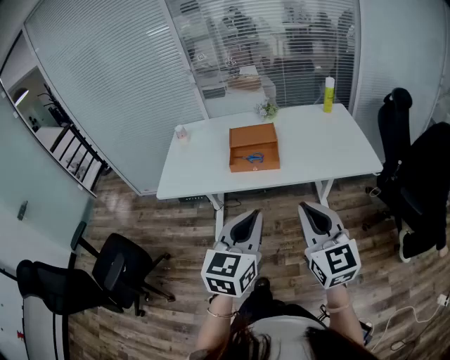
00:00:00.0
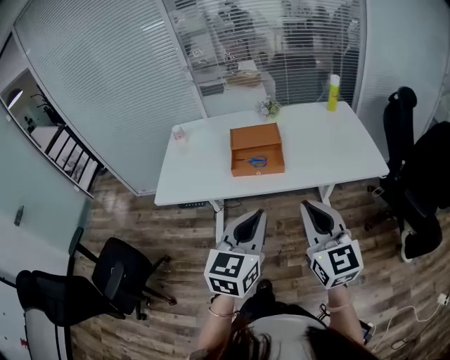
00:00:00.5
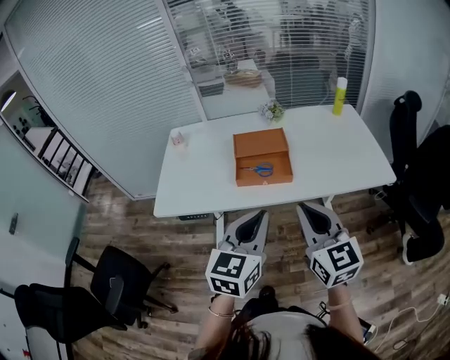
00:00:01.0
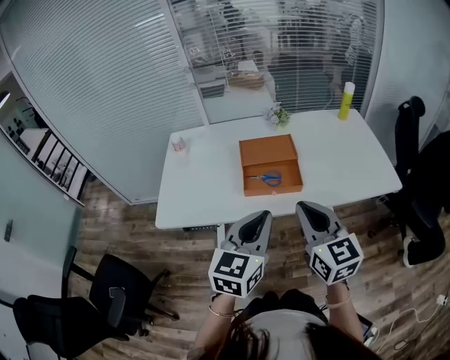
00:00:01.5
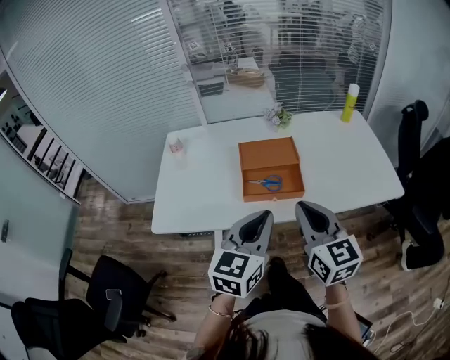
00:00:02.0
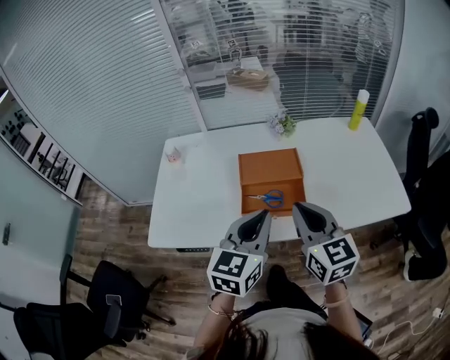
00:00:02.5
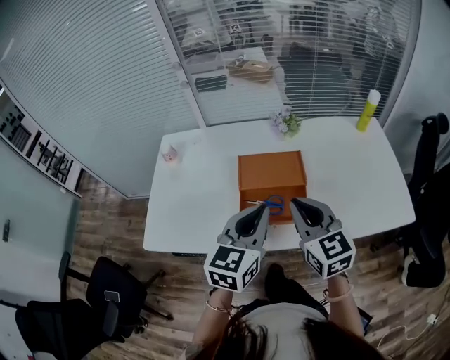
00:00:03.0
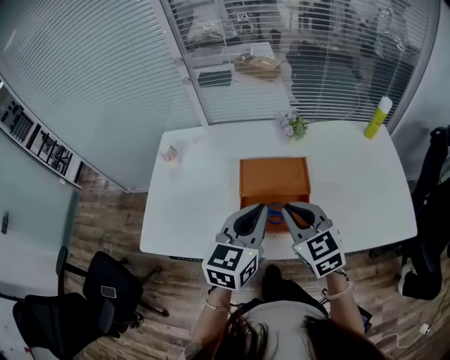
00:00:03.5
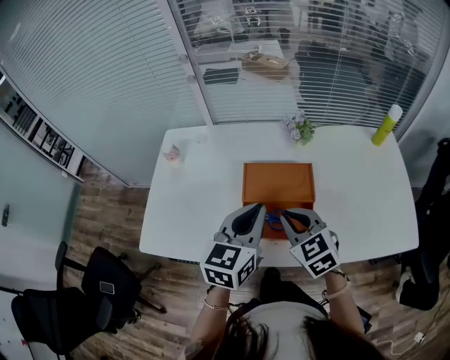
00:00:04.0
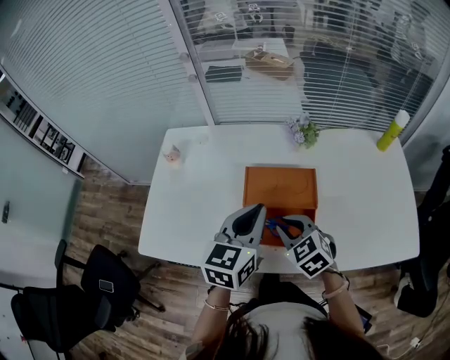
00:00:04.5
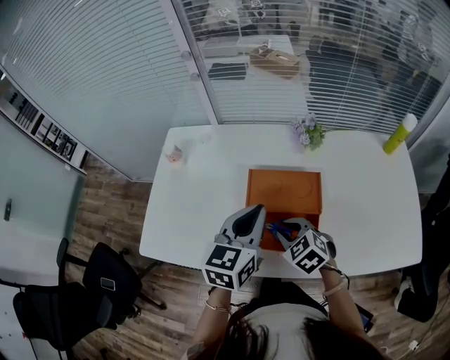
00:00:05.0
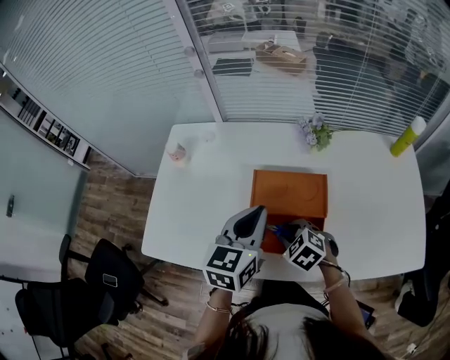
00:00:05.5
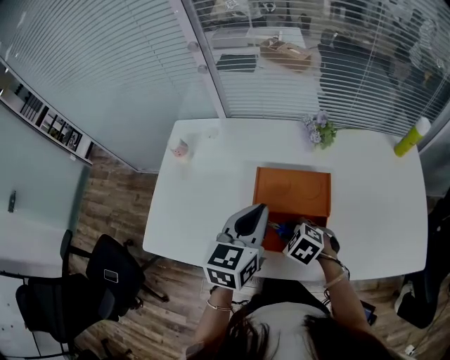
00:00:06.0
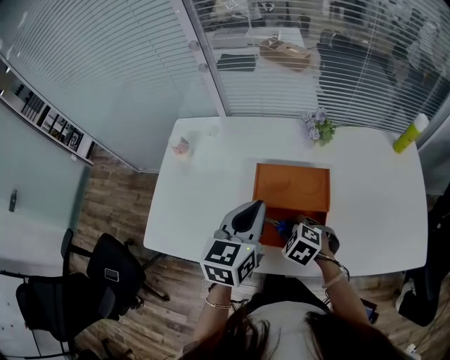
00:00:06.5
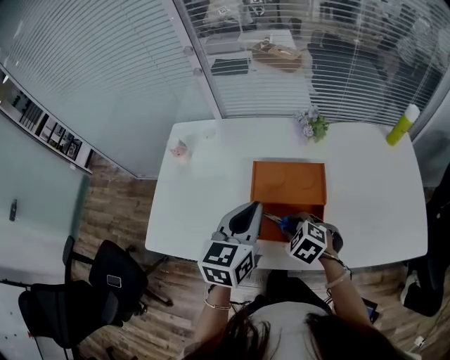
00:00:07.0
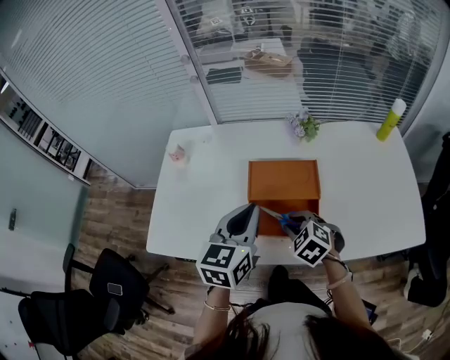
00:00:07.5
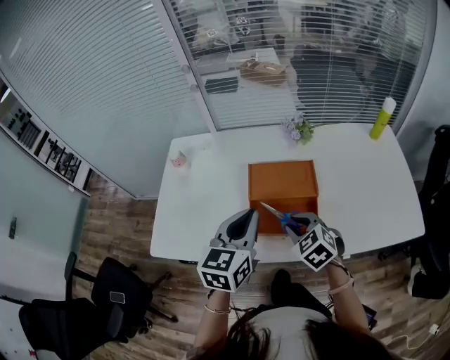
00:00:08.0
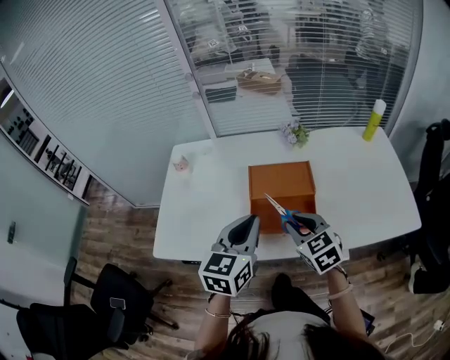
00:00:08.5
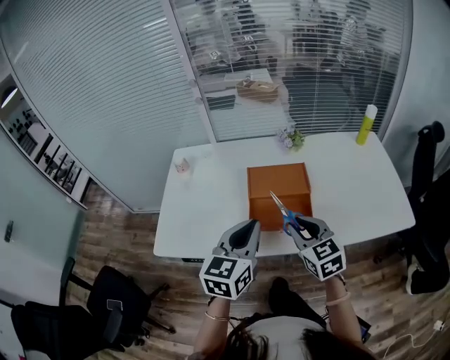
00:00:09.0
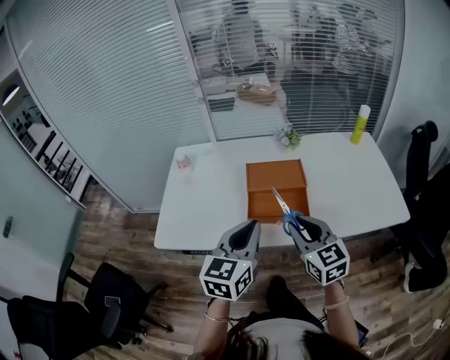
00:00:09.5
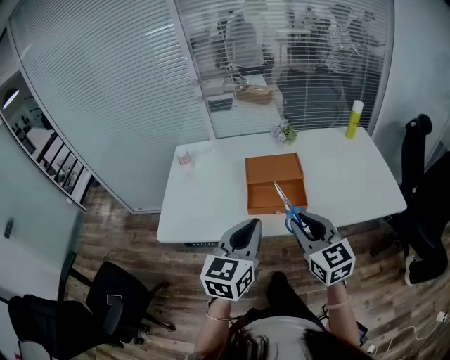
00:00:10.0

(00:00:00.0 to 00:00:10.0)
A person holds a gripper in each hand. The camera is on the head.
00:00:00.0 - 00:00:02.0: The right gripper goes some 25 cm forward and to the left, while the left gripper shifts approximately 20 cm forward.
00:00:02.0 - 00:00:04.0: The right gripper shifts some 25 cm forward and downward, and turns by approximately 40 degrees; the left gripper moves forward, roughly 20 cm.
00:00:04.0 - 00:00:06.0: The right gripper goes roughly 15 cm downward, points its fingers roughly 30 degrees further downward, and opens up. Meanwhile the left gripper is displaced forward by about 5 cm.
00:00:06.0 - 00:00:08.0: The right gripper shifts some 10 cm upward, and changes its angle by some 30 degrees. Meanwhile the left gripper moves backward, about 10 cm.
00:00:08.0 - 00:00:10.0: The right gripper shifts roughly 20 cm backward and upward, and angles its fingers upward, by approximately 40 degrees. Meanwhile the left gripper heads backward, covering about 15 cm.

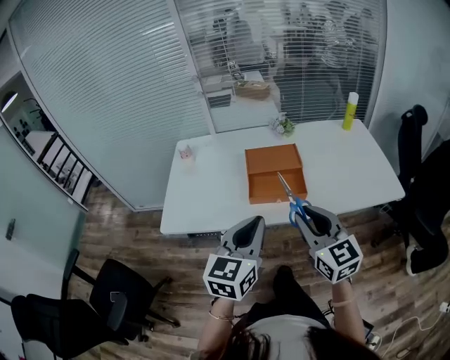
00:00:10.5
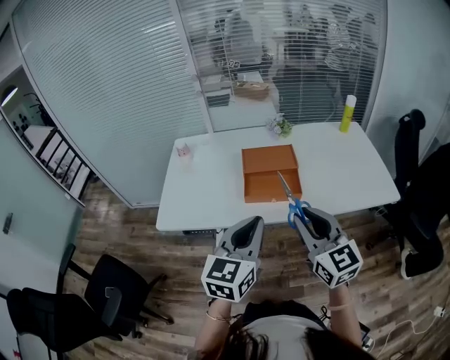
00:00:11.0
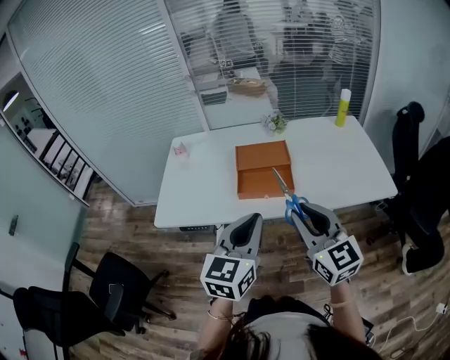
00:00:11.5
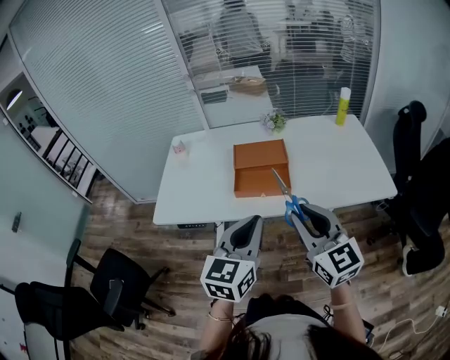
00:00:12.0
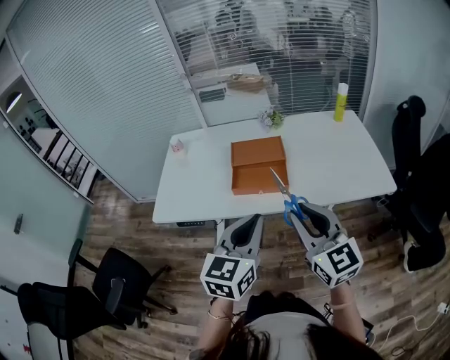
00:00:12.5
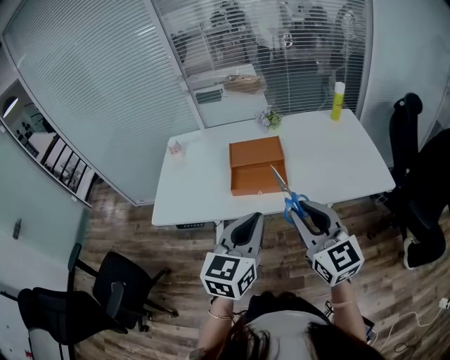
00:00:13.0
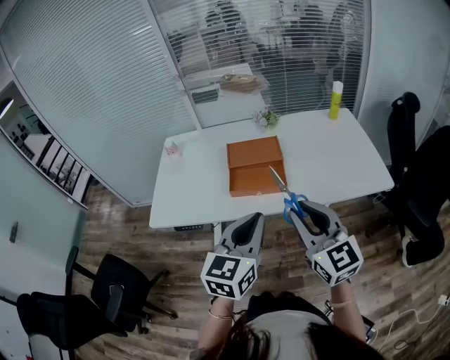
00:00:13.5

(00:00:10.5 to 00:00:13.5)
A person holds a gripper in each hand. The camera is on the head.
00:00:10.5 - 00:00:12.0: Both grippers move to the right, approximately 5 cm.
00:00:12.0 - 00:00:13.5: The grippers move only a little.

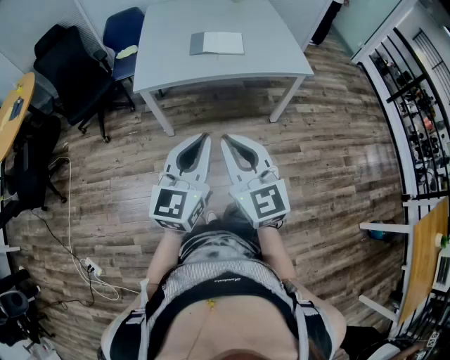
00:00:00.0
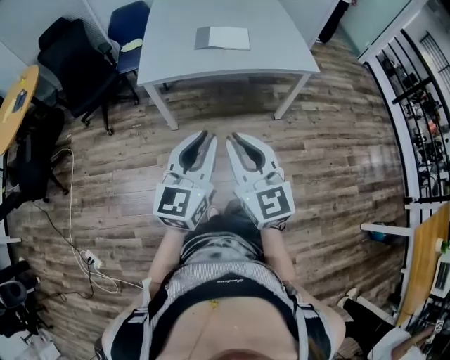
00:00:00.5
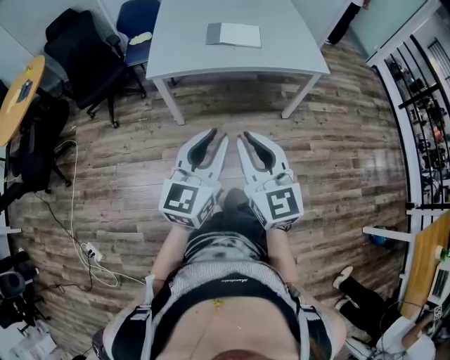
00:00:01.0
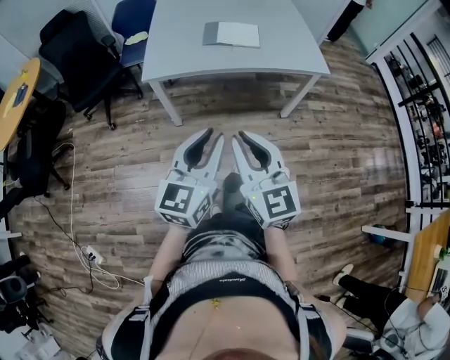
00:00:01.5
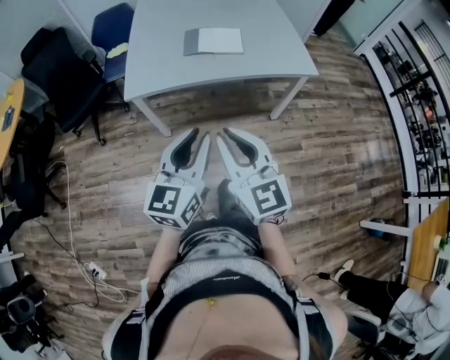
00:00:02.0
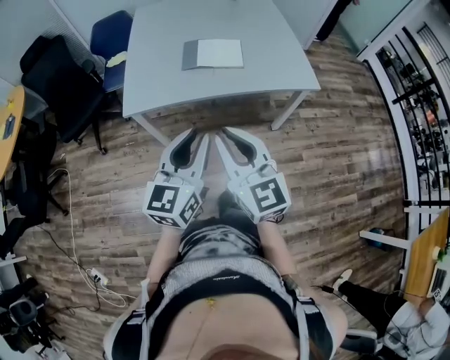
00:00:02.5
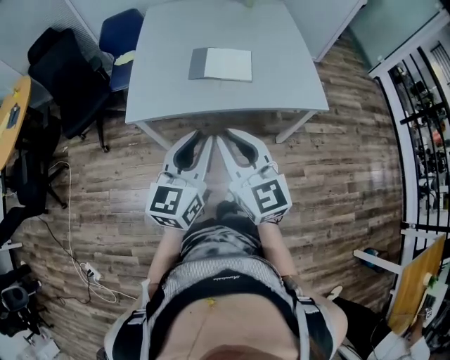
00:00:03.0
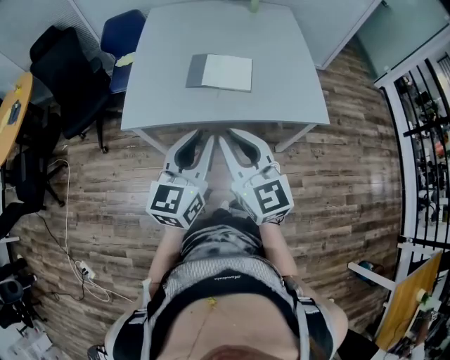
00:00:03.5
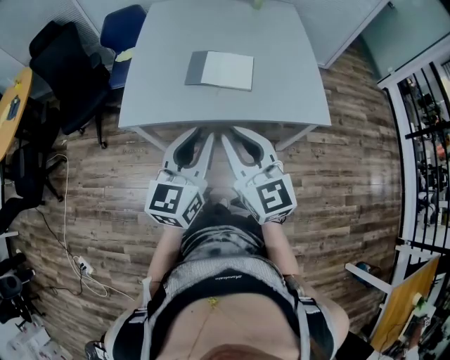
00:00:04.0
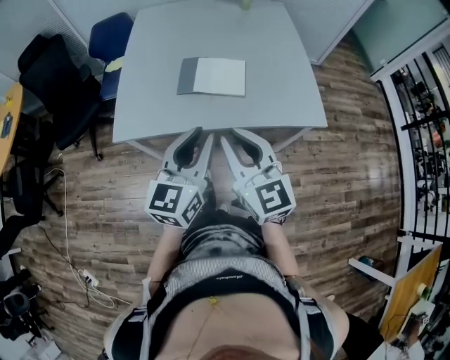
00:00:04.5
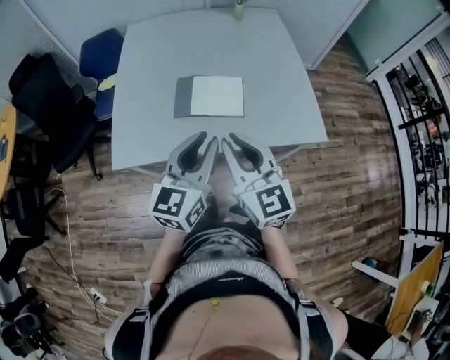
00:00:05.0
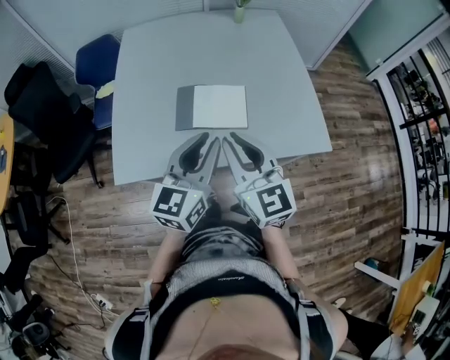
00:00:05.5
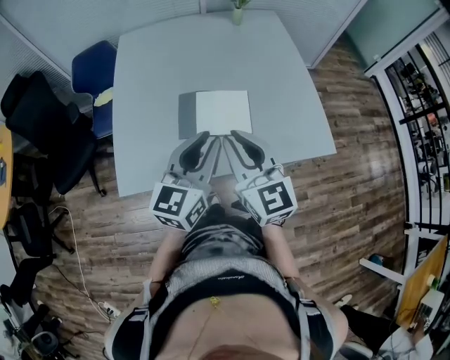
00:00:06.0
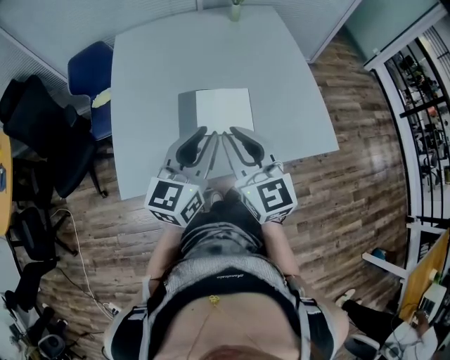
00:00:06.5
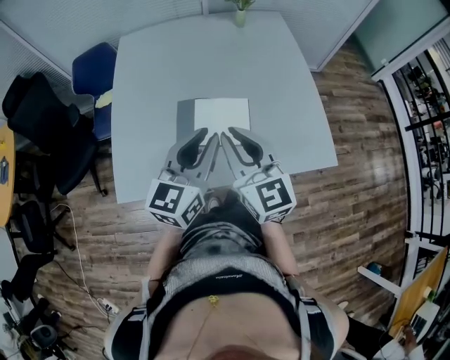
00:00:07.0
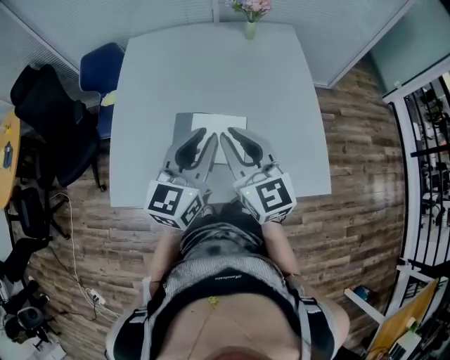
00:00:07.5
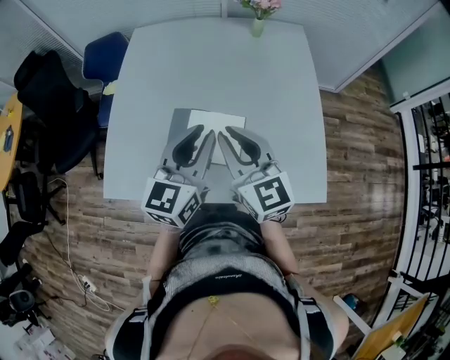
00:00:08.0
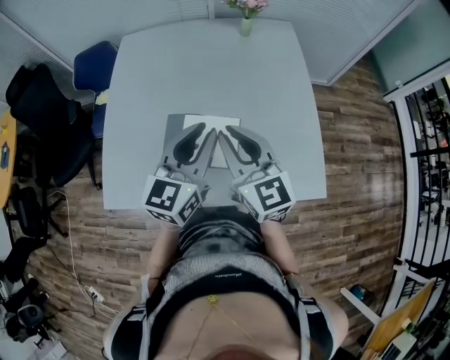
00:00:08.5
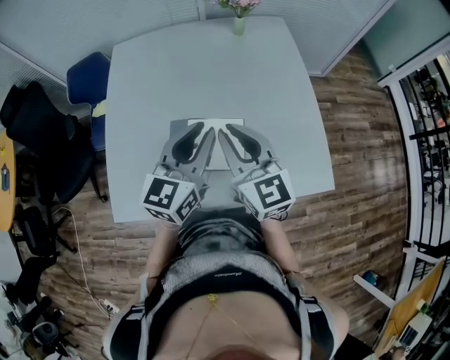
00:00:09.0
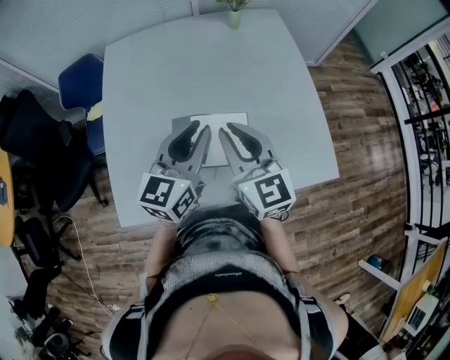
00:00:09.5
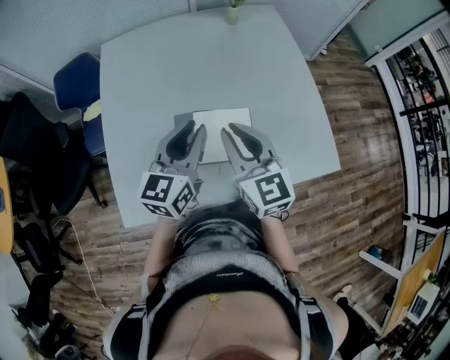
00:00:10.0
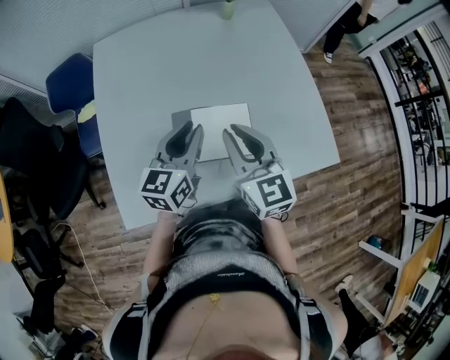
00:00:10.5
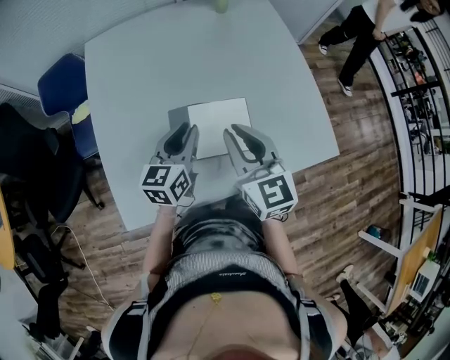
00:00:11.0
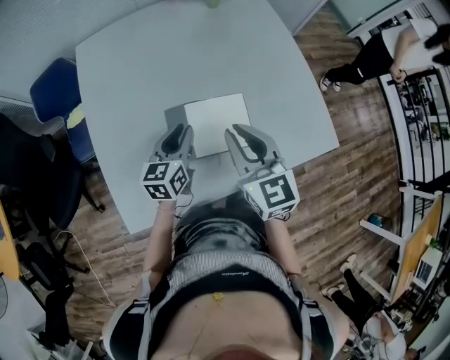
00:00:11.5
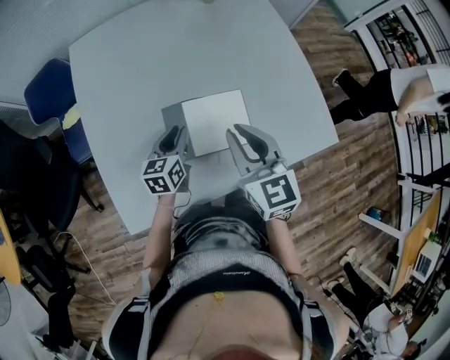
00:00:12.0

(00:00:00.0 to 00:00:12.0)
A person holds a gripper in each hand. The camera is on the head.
00:00:00.0 - 00:00:02.0: The two grippers go some 10 cm forward.
00:00:02.0 - 00:00:04.0: The right gripper is displaced forward and to the right by about 25 cm, while the left gripper moves forward, about 20 cm.
00:00:04.0 - 00:00:06.0: The two grippers go approximately 20 cm forward.
00:00:06.0 - 00:00:08.0: Both grippers travel together forward and to the right, approximately 15 cm.
00:00:08.0 - 00:00:10.0: Both grippers move to the left, roughly 10 cm.
00:00:10.0 - 00:00:12.0: The left gripper shifts about 20 cm downward, and turns by some 20 degrees.

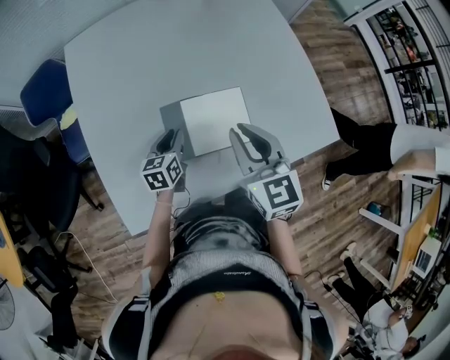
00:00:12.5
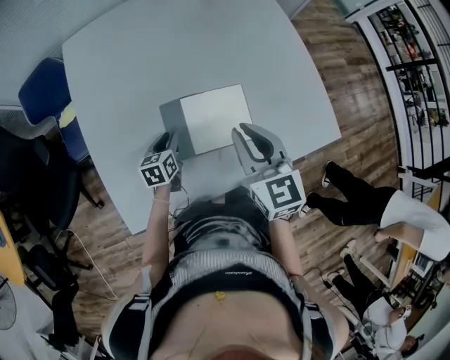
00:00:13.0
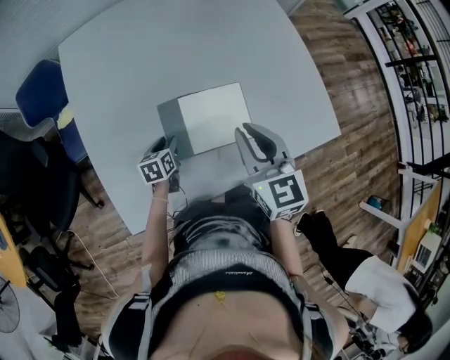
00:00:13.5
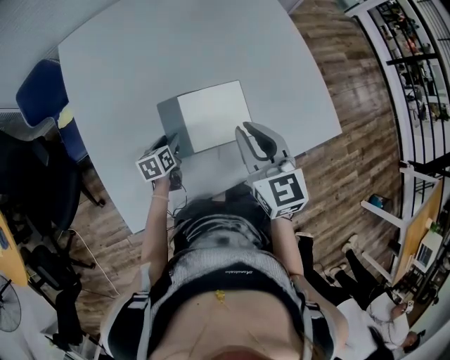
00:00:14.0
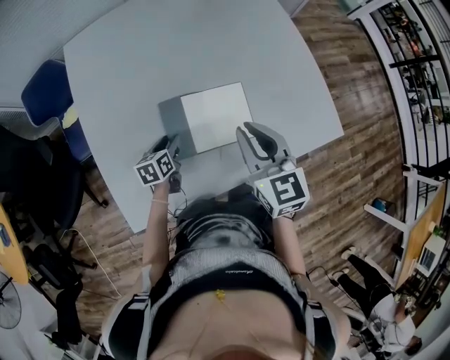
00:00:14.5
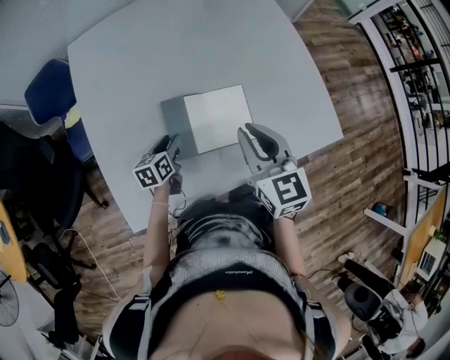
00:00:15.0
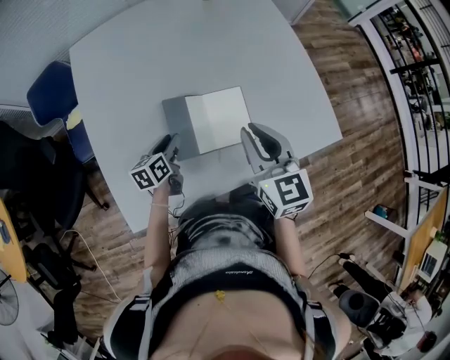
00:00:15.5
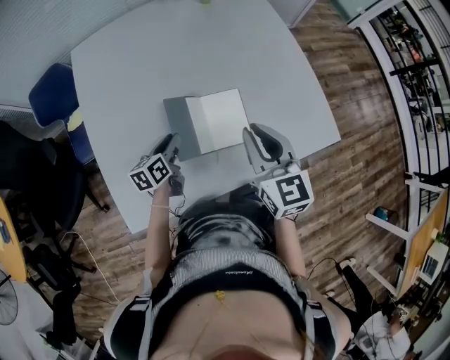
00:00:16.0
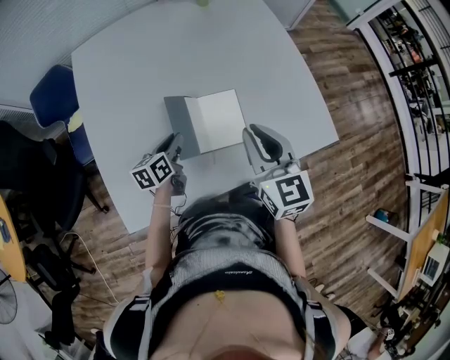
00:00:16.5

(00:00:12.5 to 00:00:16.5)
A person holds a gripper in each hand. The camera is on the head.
00:00:12.5 - 00:00:14.5: The left gripper heads downward, covering approximately 5 cm, and opens up.
00:00:14.5 - 00:00:16.5: The left gripper shifts roughly 10 cm upward, and closes its fingers; the right gripper moves some 5 cm.